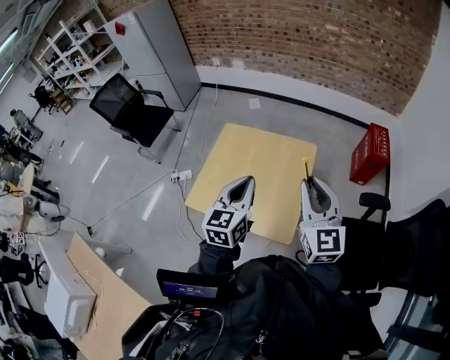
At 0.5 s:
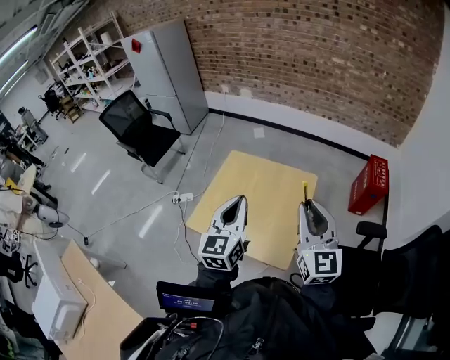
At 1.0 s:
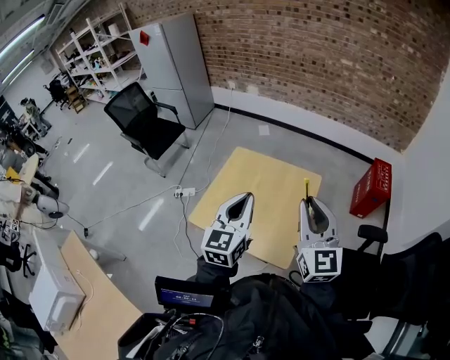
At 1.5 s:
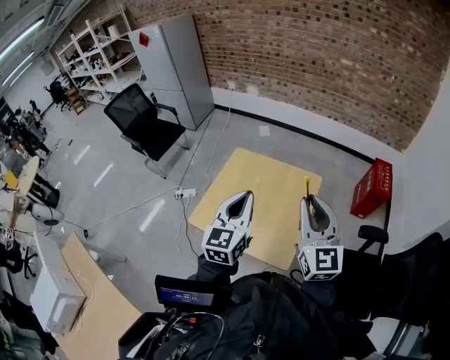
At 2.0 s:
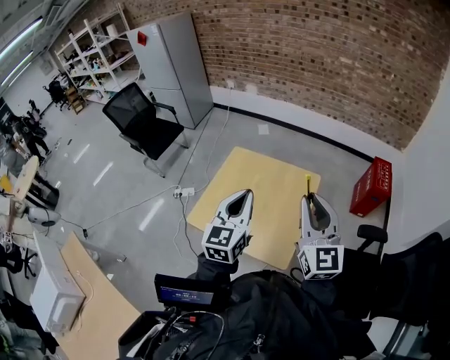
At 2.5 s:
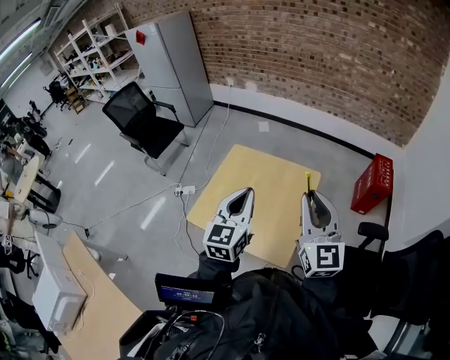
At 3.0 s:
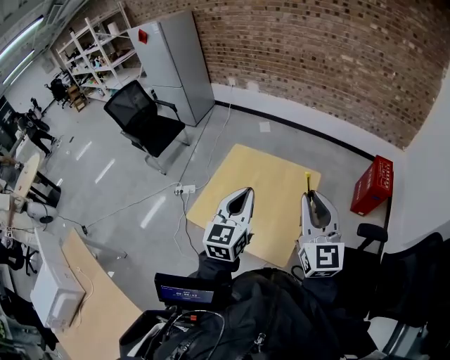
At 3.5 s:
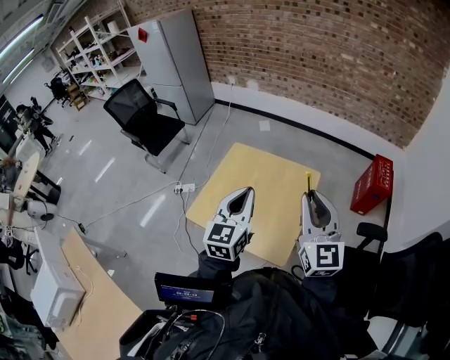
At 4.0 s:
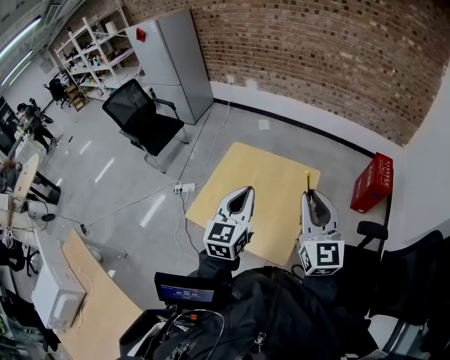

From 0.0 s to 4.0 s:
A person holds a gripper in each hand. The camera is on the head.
From 0.0 s to 2.0 s: The left gripper moves some 5 cm.
From 2.0 s to 4.0 s: Both grippers stay about where they are.

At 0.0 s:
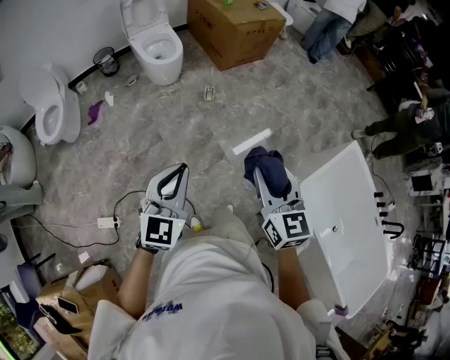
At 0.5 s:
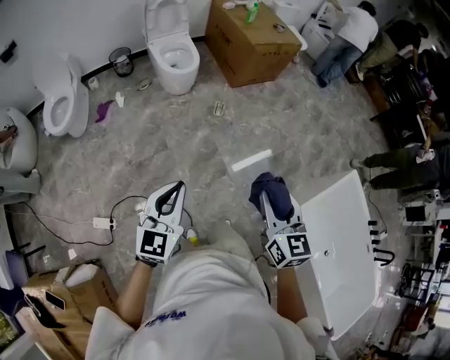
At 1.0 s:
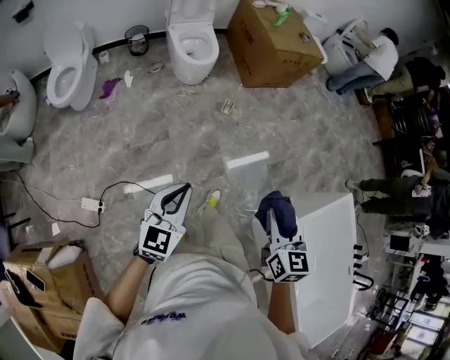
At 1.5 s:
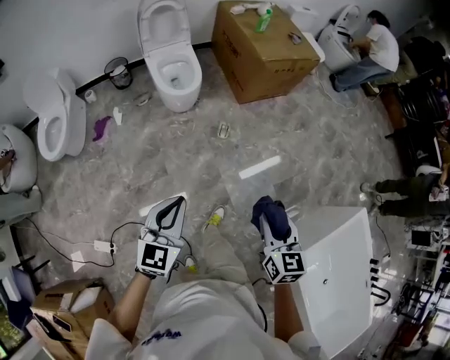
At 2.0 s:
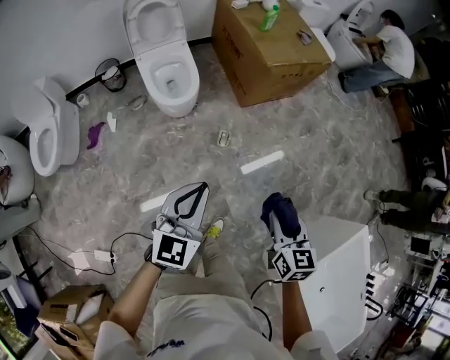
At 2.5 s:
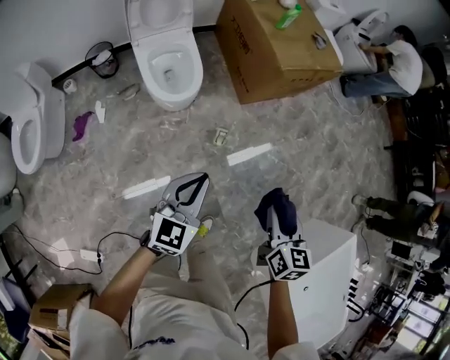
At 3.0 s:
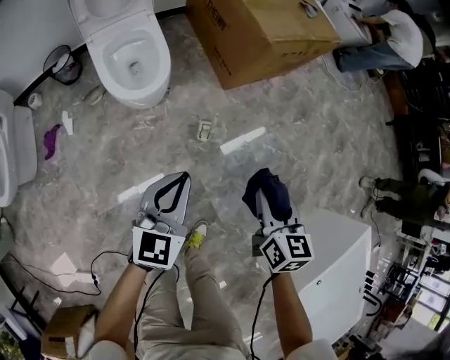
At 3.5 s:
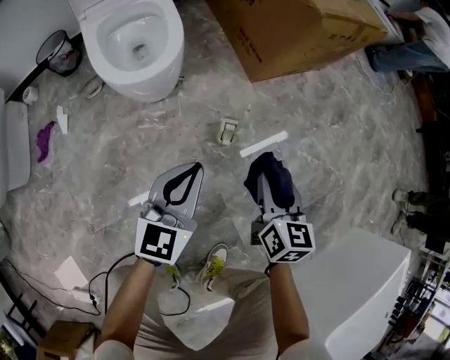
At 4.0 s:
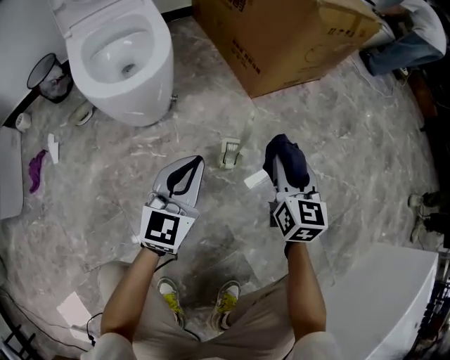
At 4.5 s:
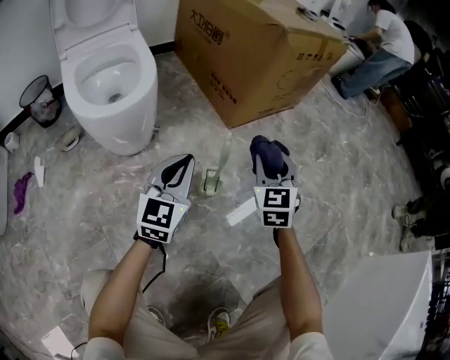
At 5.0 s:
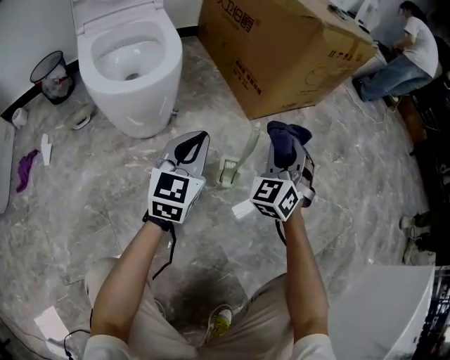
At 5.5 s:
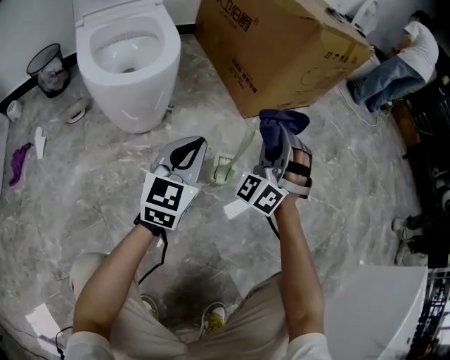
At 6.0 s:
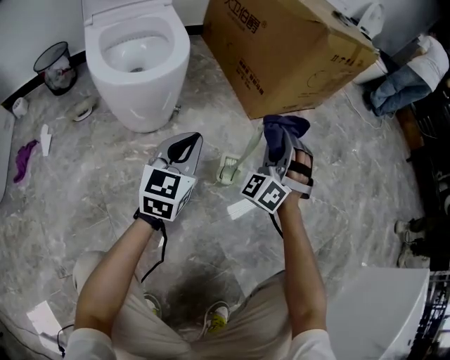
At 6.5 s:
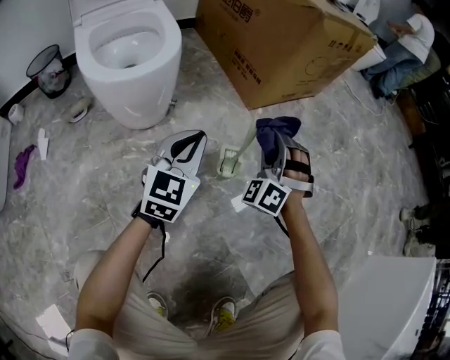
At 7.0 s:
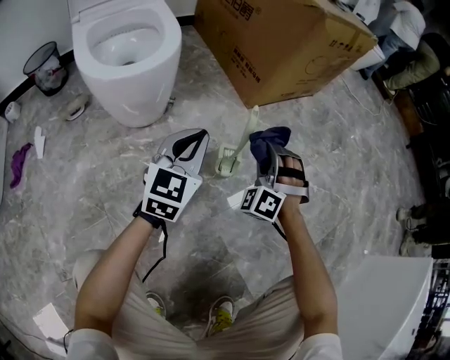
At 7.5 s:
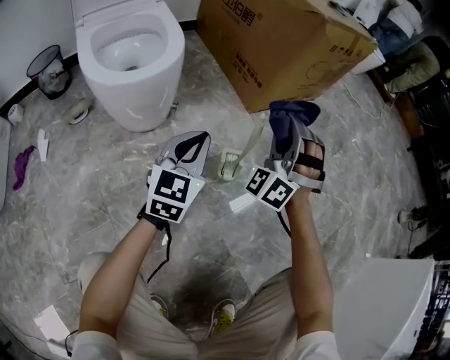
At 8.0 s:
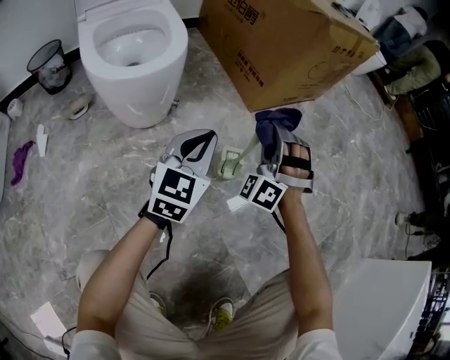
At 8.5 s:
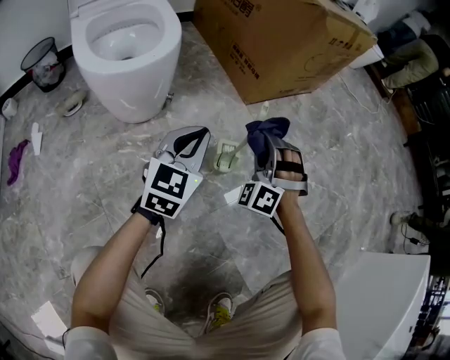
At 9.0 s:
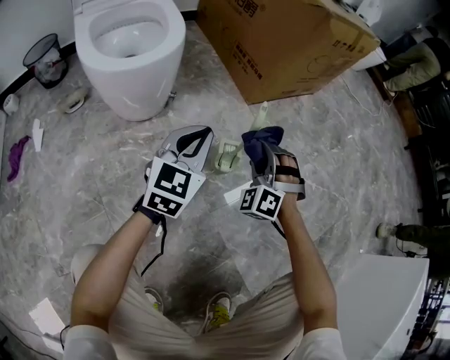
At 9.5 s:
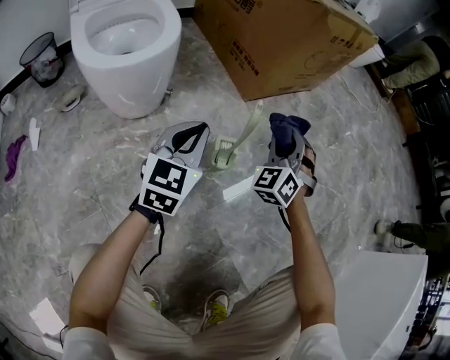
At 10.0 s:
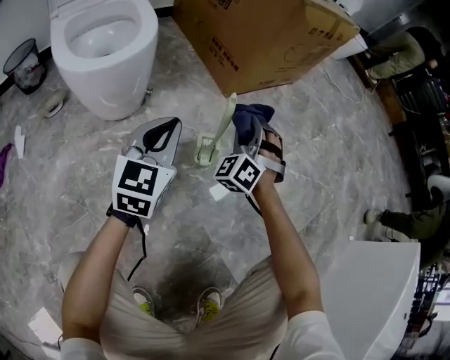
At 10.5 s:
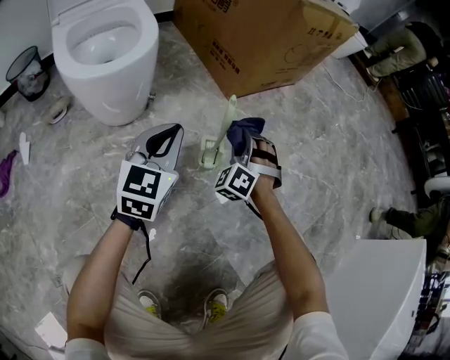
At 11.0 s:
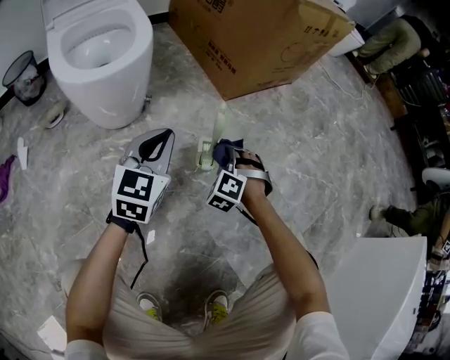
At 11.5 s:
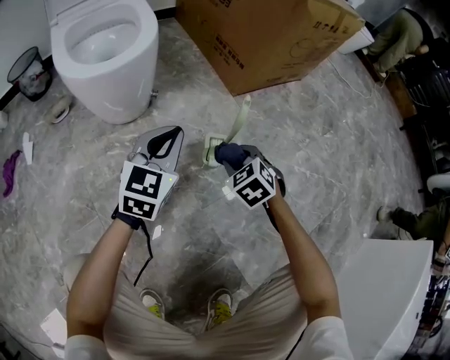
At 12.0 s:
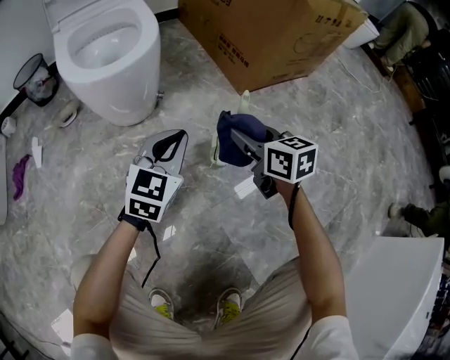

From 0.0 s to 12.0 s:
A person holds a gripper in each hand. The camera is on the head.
From 0.0 s to 2.0 s: Both grippers are carried forward, roughly 40 cm.
From 2.0 s to 4.0 s: The two grippers go some 60 cm downward and forward.
From 4.0 s to 6.0 s: The right gripper heads to the left and forward, covering approximately 10 cm, and rolls counterclockwise, seen from behind, by some 80 degrees. Meanwhile the left gripper moves roughly 5 cm.
From 6.0 s to 8.0 s: The right gripper swings up and down, approximately 10 cm each way, with 2 reversals.
From 8.0 s to 10.0 s: The right gripper turns by about 20 degrees.
From 10.0 s to 12.0 s: The right gripper reaches approximately 15 cm downward, then returns, and changes its angle by roughly 90 degrees.

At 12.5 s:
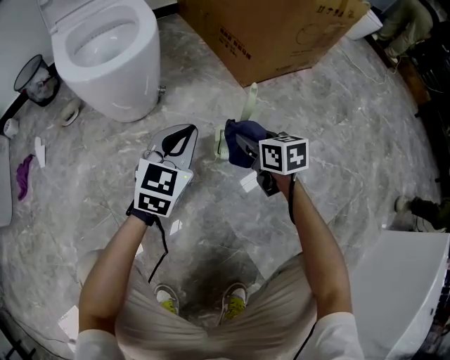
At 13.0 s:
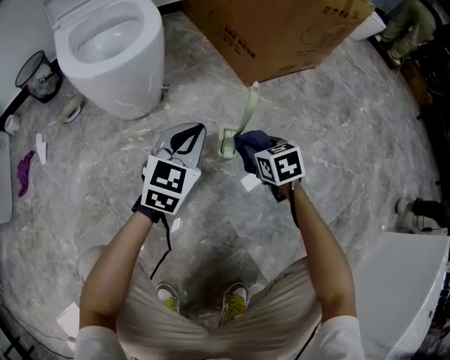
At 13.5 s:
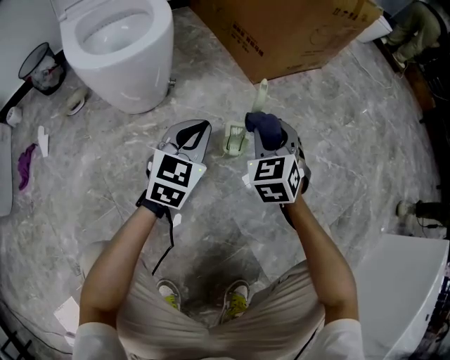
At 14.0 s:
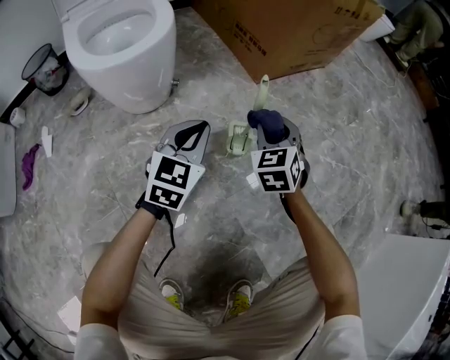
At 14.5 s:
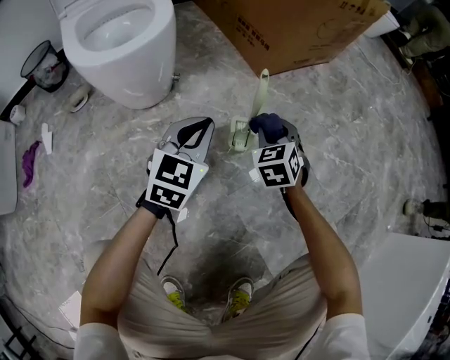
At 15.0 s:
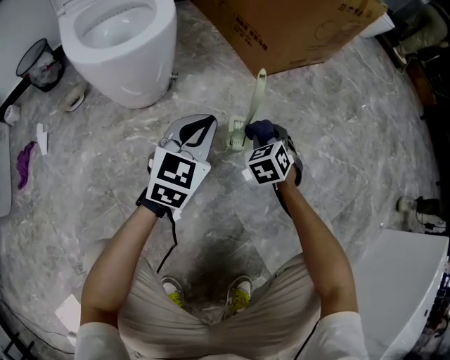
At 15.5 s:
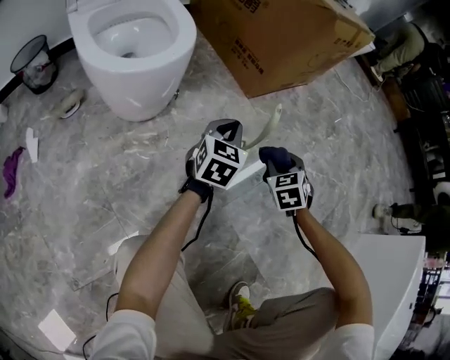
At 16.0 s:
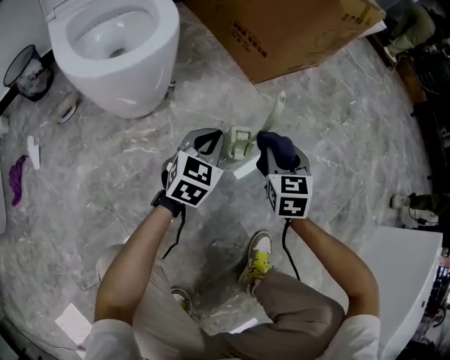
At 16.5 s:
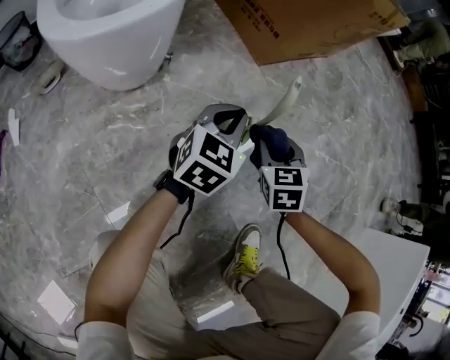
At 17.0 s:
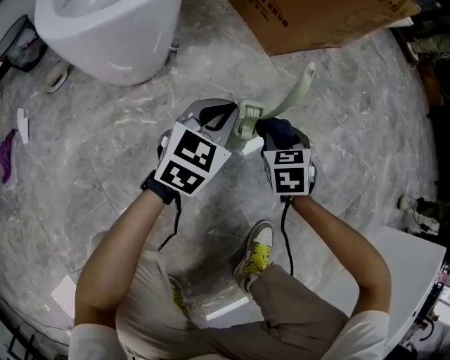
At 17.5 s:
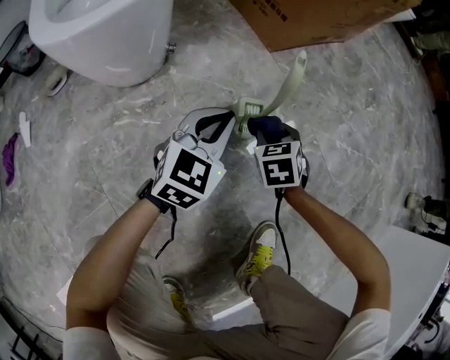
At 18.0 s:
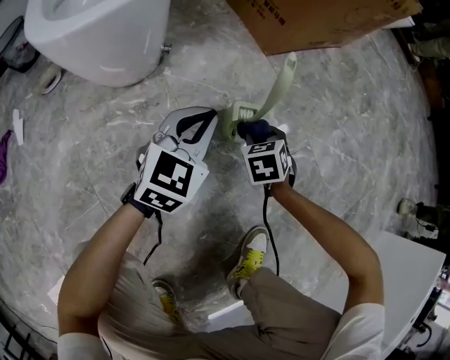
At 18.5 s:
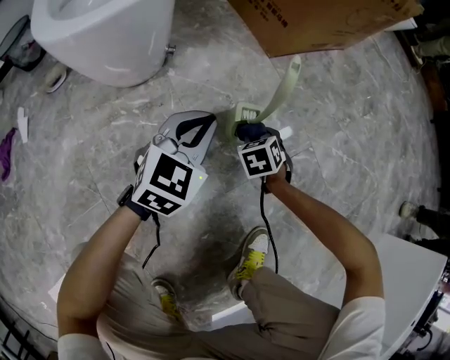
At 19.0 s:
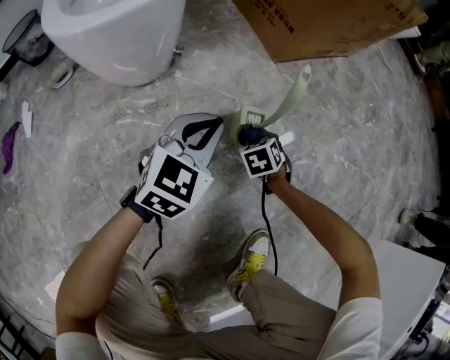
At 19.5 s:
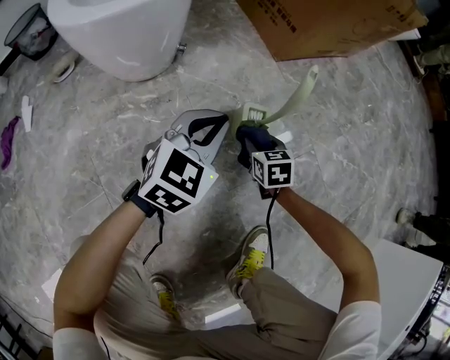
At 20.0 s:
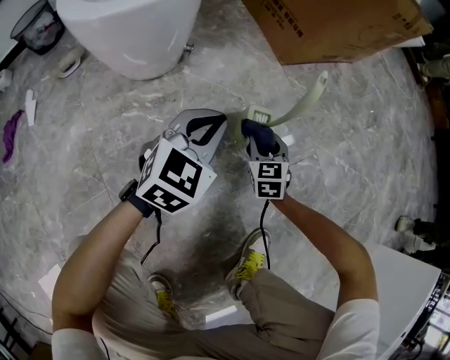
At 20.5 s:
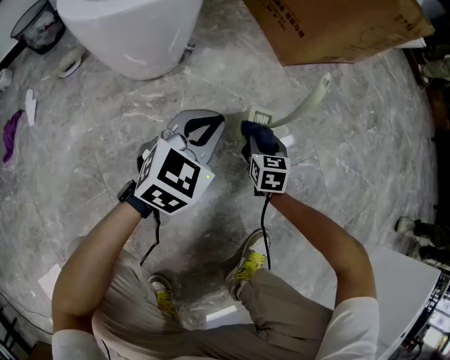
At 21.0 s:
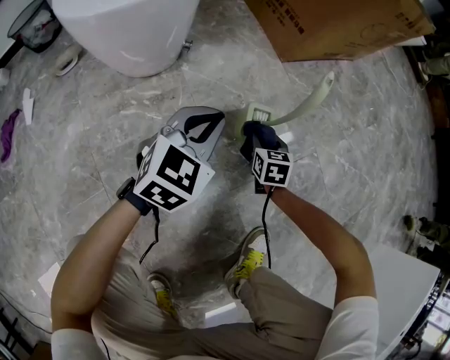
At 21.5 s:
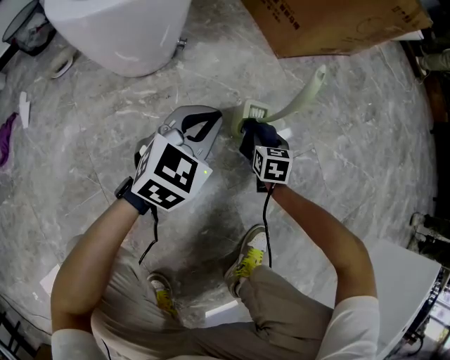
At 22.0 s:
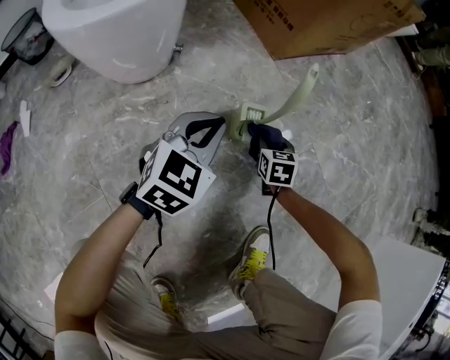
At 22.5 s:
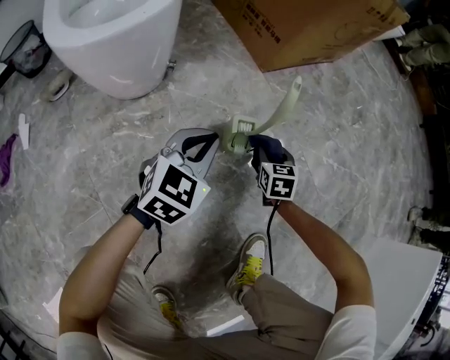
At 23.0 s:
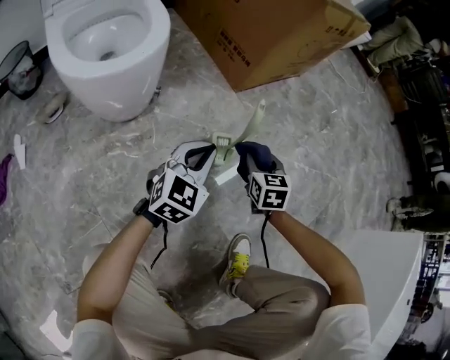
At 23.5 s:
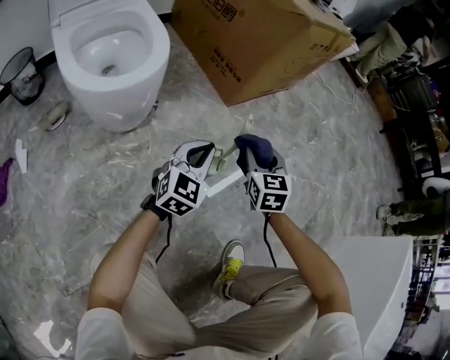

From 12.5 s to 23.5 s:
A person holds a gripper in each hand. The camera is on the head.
From 12.5 s to 14.5 s: The right gripper travels upward and back again, roughly 5 cm each way, and changes its angle by roughly 40 degrees.
From 14.5 s to 16.0 s: The left gripper moves downward, approximately 5 cm.
From 16.0 s to 18.0 s: The right gripper travels downward by some 15 cm, and swivels some 20 degrees.
From 18.0 s to 20.0 s: The right gripper swivels approximately 20 degrees.
From 20.0 s to 21.5 s: The right gripper ends up roughly 5 cm from where it was.
From 21.5 s to 23.5 s: The right gripper heads upward, covering roughly 30 cm, and turns by about 20 degrees, while the left gripper goes some 10 cm upward.
